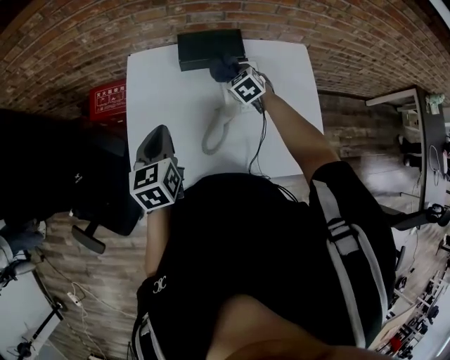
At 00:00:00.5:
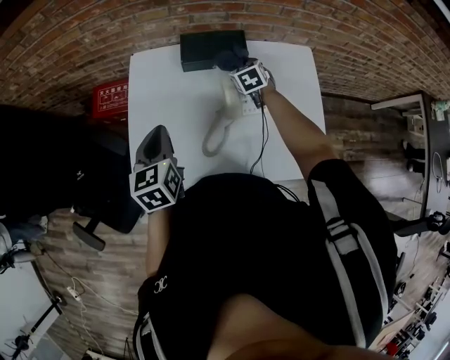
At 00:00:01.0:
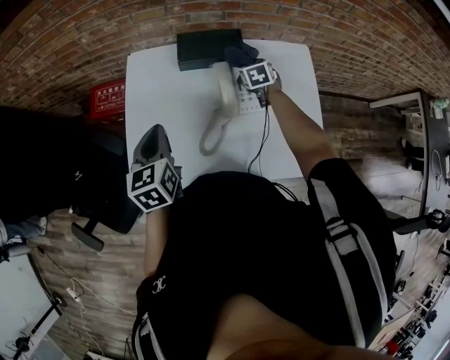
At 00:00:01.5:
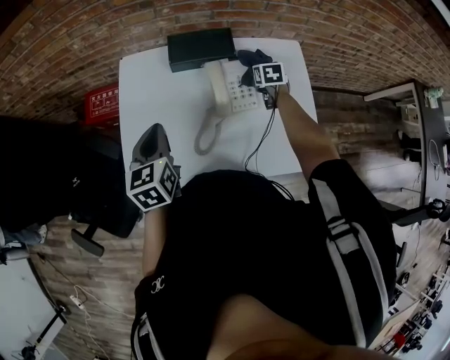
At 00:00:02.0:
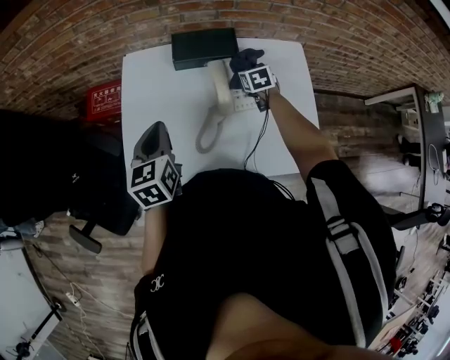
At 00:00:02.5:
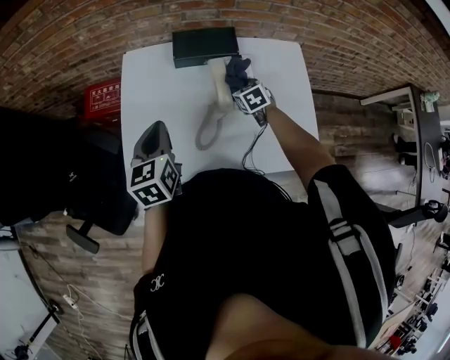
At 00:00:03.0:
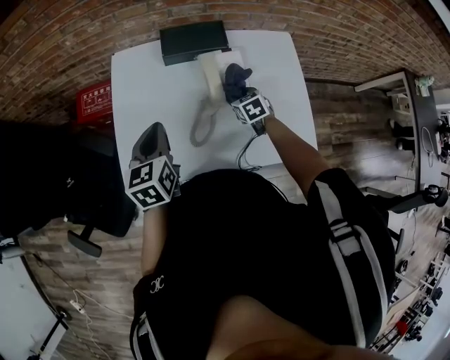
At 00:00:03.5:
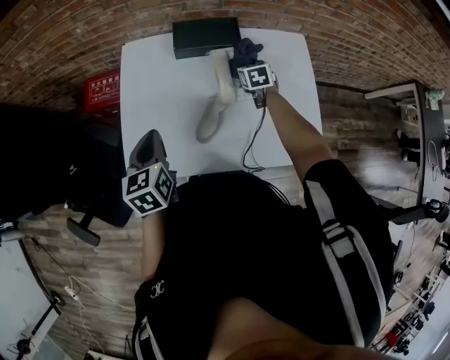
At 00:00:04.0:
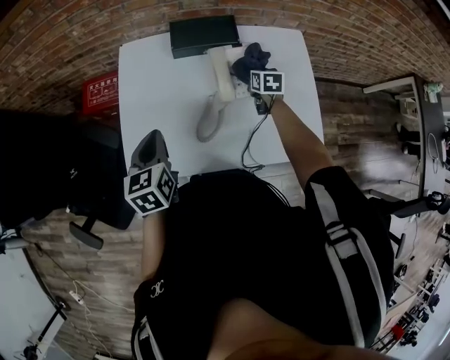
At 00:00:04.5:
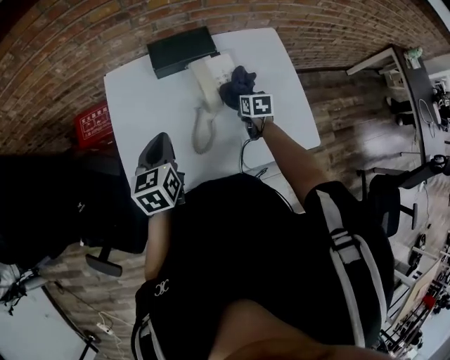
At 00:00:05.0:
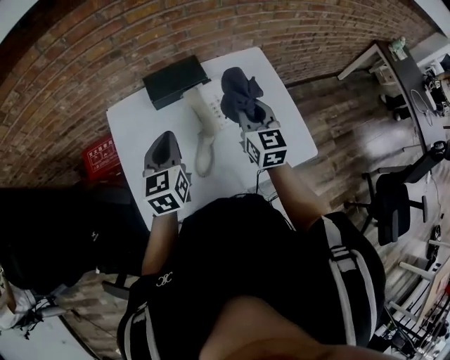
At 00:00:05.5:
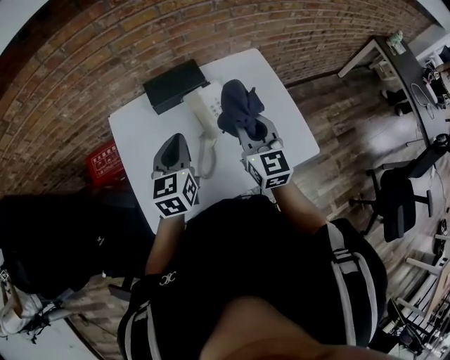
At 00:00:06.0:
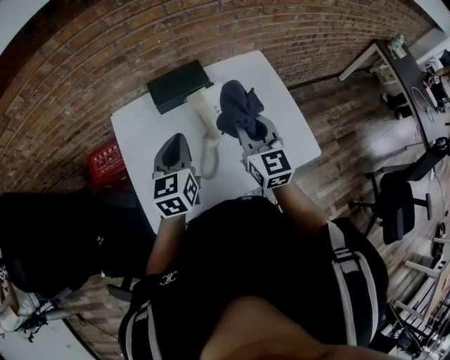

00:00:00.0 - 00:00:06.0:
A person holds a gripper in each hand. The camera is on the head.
00:00:00.0 - 00:00:02.0: The right gripper shifts roughly 10 cm to the right, and swivels approximately 20 degrees.
00:00:02.0 - 00:00:04.0: The left gripper moves approximately 5 cm.
00:00:04.0 - 00:00:06.0: The left gripper is displaced to the right, forward and upward by approximately 15 cm, and swivels about 20 degrees; the right gripper is displaced upward and backward by approximately 30 cm, and tilts its fingers approximately 40 degrees upward.

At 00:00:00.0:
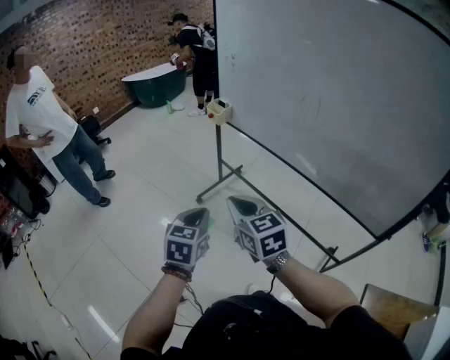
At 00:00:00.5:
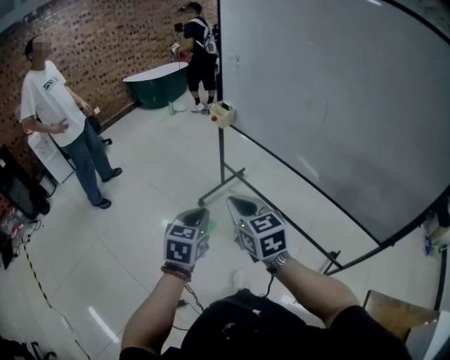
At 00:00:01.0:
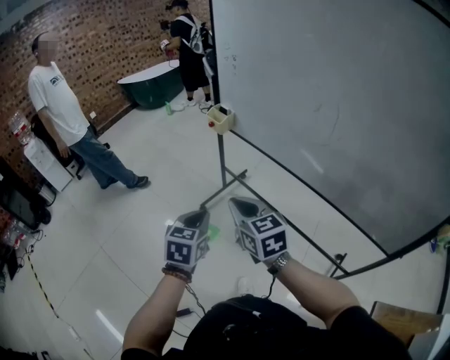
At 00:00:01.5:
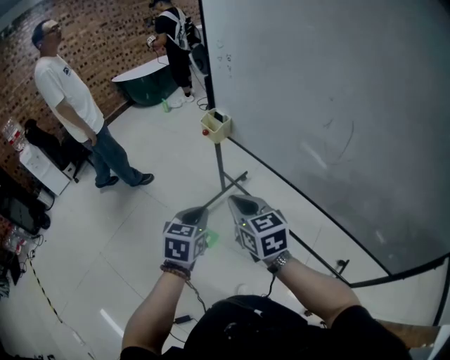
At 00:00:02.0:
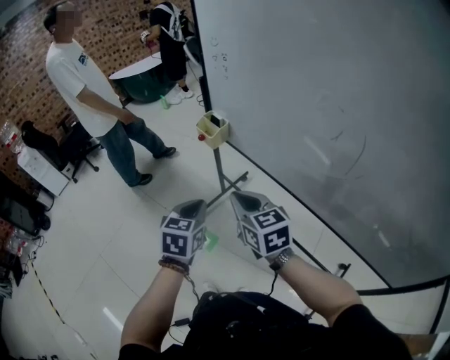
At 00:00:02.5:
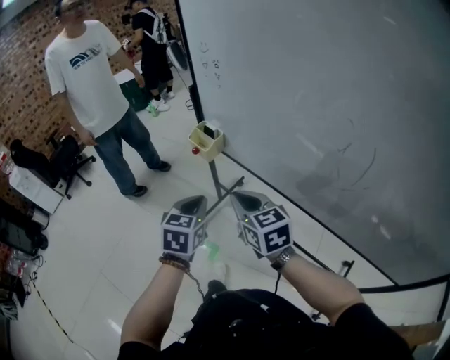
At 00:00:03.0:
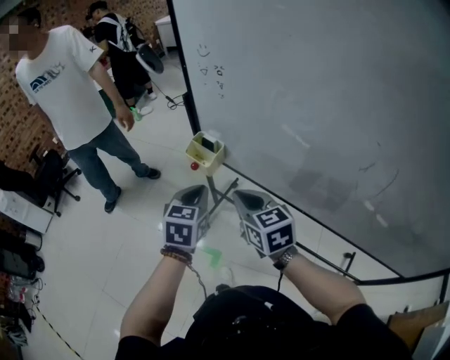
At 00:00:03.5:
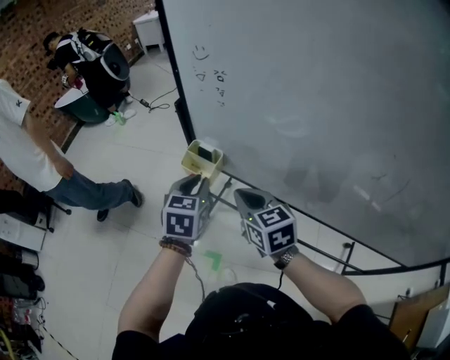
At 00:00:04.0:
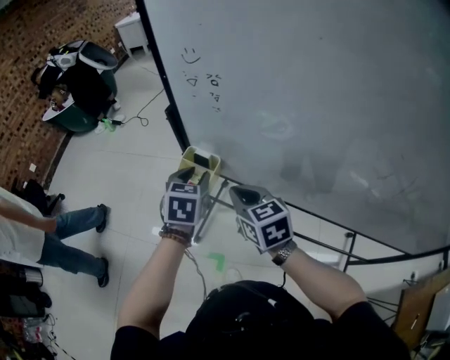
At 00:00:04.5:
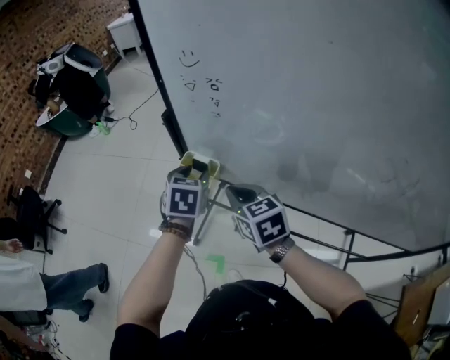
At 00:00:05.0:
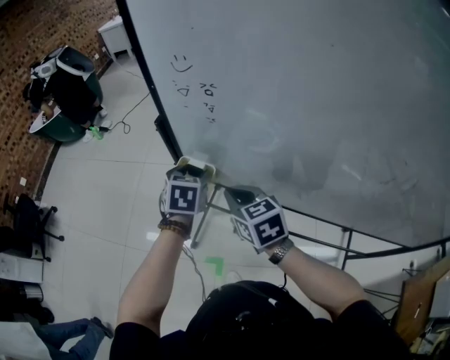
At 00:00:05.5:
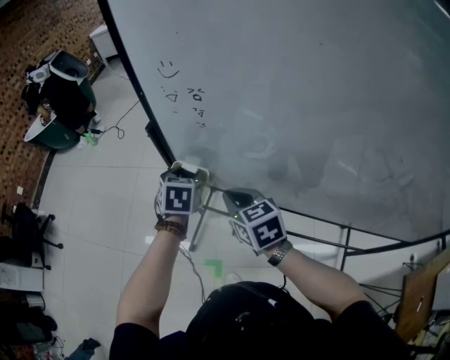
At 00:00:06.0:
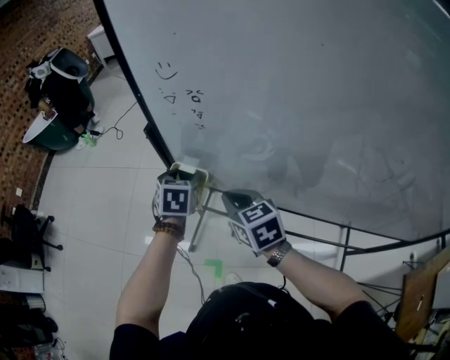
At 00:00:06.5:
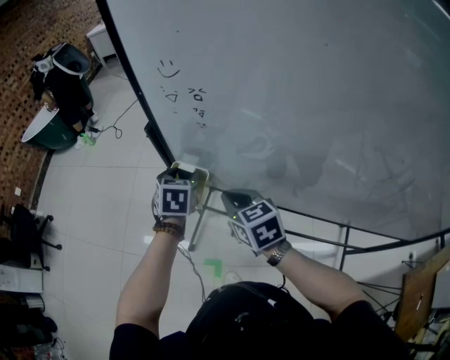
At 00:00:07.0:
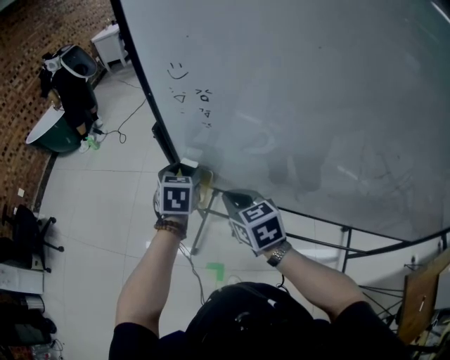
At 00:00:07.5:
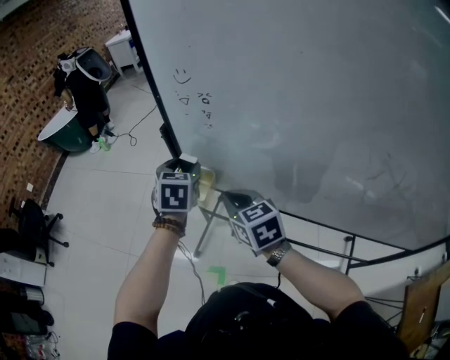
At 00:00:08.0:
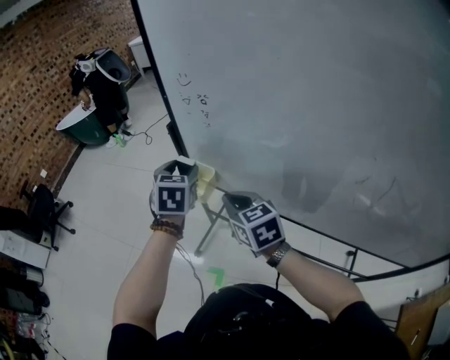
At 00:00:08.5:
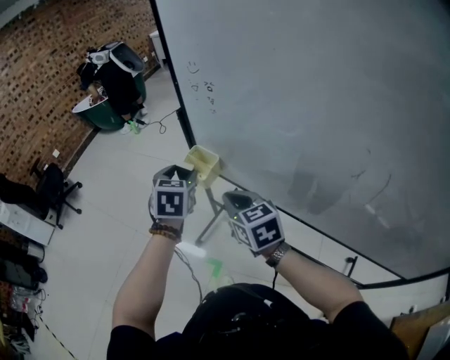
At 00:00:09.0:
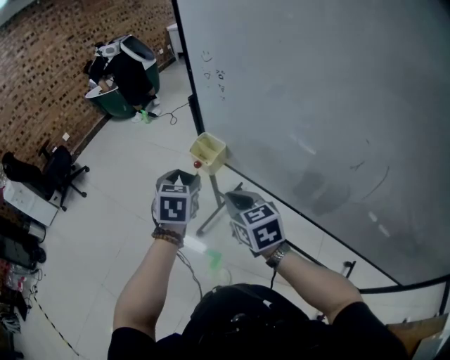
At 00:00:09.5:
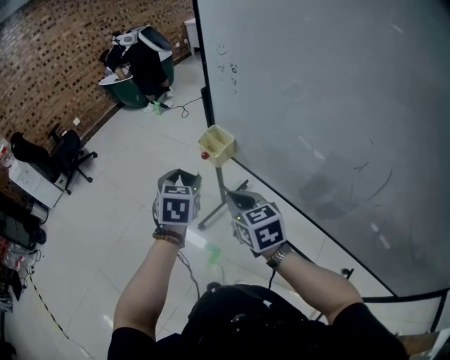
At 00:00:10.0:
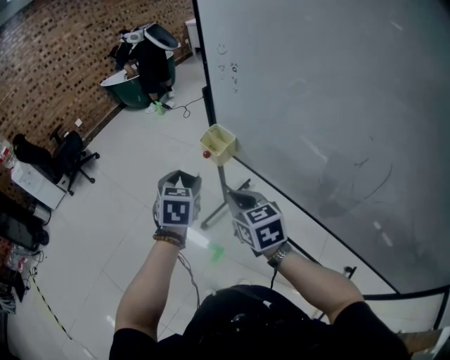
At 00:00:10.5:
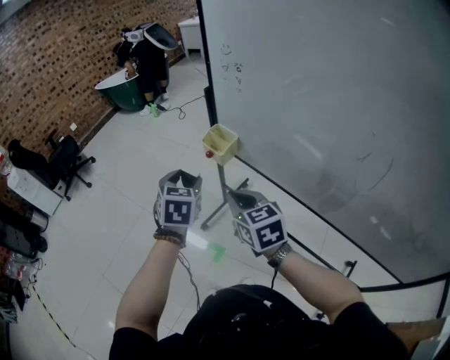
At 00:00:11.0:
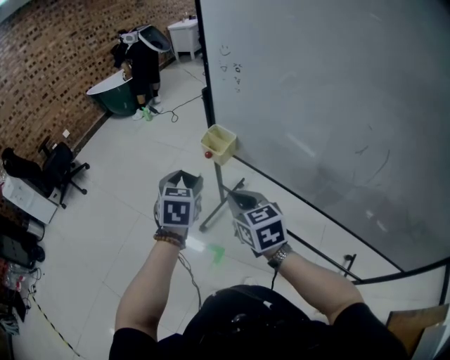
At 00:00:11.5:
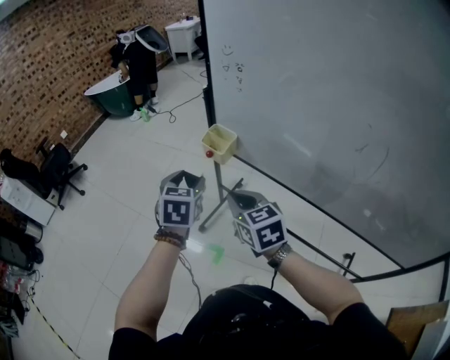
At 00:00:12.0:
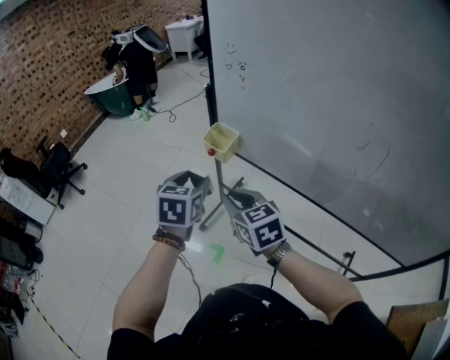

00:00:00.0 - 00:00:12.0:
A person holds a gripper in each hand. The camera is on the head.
00:00:00.0 - 00:00:02.0: Both grippers move forward, roughly 30 cm.
00:00:02.0 - 00:00:04.0: Both grippers move forward, some 30 cm. The left gripper opens up, while the right gripper changes its angle by about 20 degrees.
00:00:04.0 - 00:00:06.0: The left gripper heads forward, covering approximately 10 cm, and opens up.
00:00:06.0 - 00:00:08.0: The right gripper moves upward and backward, about 10 cm, while the left gripper moves upward and backward, about 15 cm.
00:00:08.0 - 00:00:10.0: The left gripper moves backward and to the left, about 20 cm. The right gripper travels backward by roughly 10 cm.
00:00:10.0 - 00:00:12.0: The right gripper heads to the left, covering approximately 5 cm.

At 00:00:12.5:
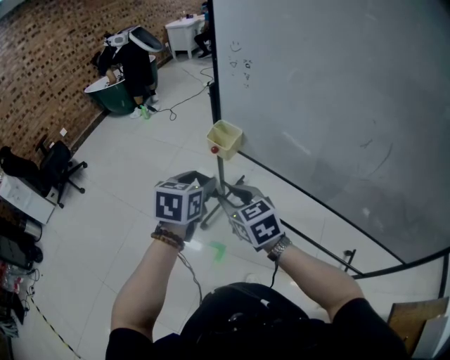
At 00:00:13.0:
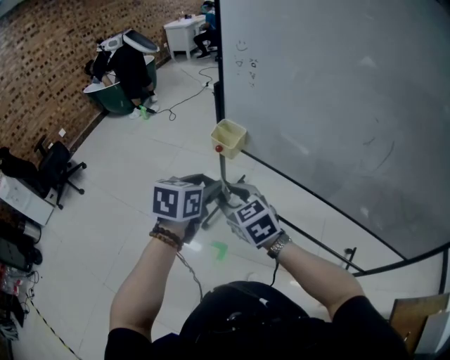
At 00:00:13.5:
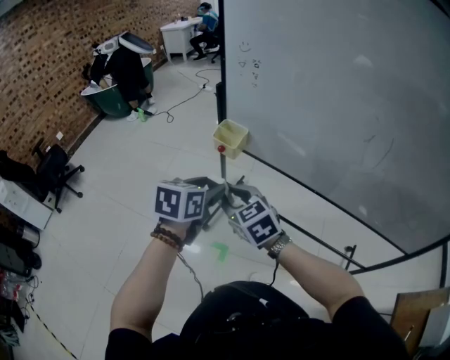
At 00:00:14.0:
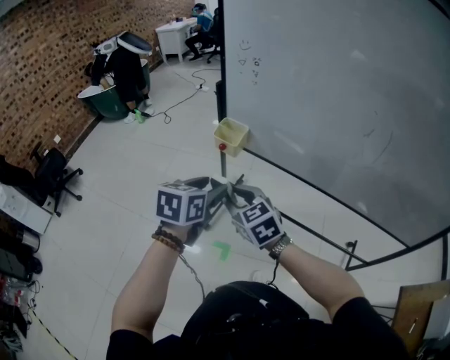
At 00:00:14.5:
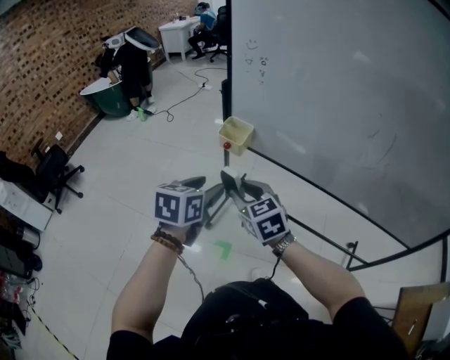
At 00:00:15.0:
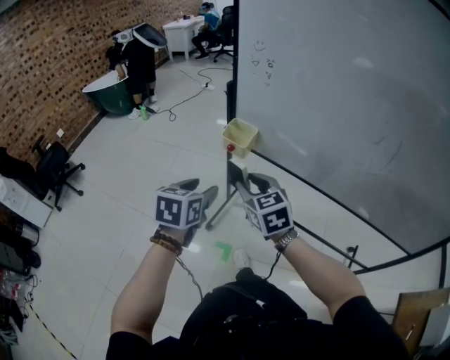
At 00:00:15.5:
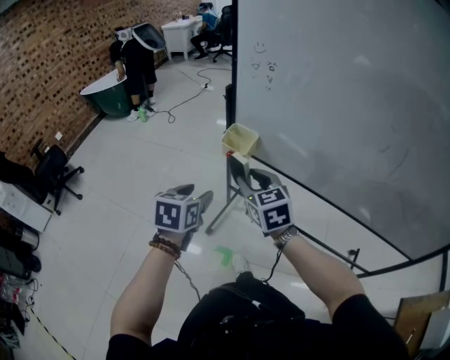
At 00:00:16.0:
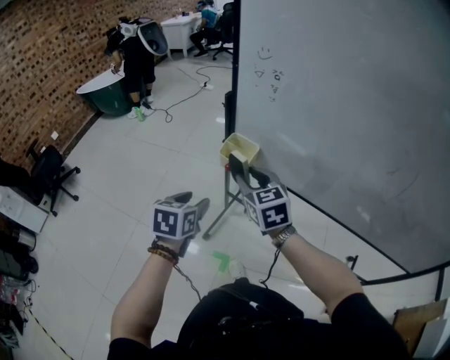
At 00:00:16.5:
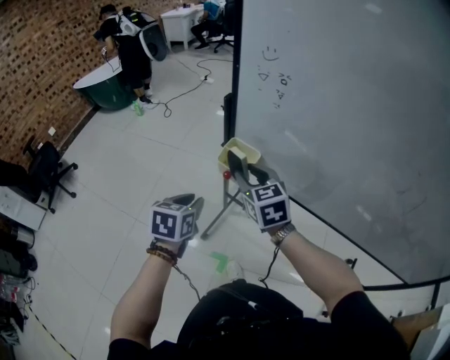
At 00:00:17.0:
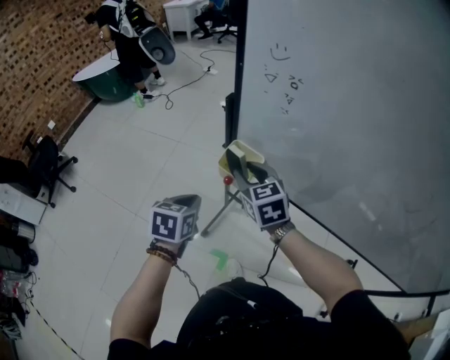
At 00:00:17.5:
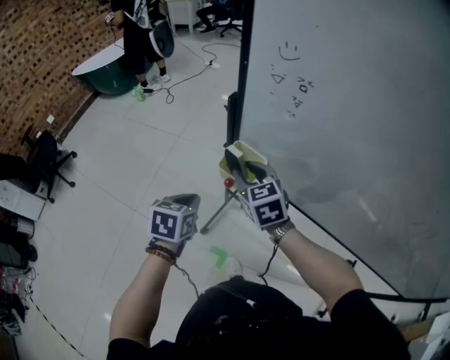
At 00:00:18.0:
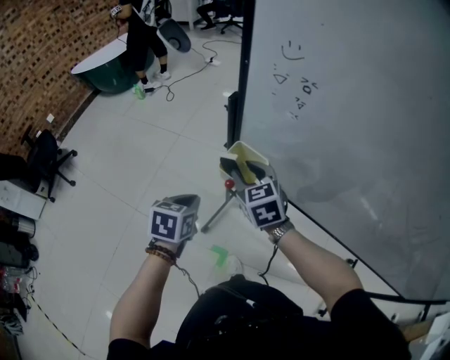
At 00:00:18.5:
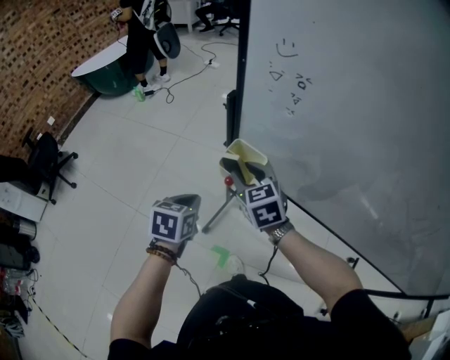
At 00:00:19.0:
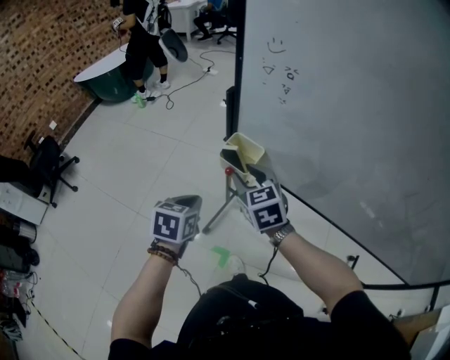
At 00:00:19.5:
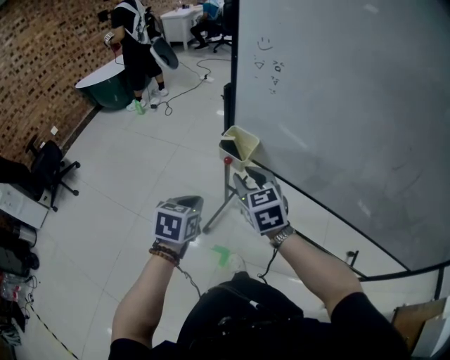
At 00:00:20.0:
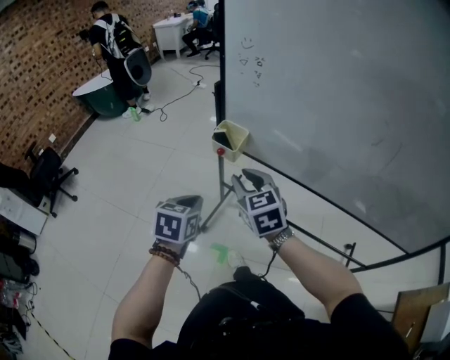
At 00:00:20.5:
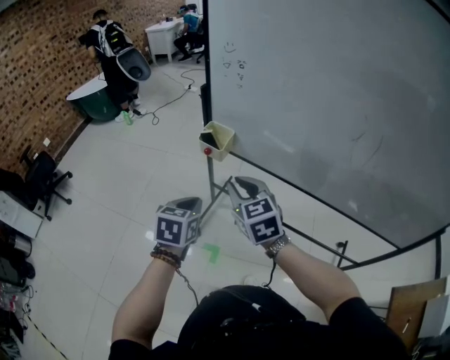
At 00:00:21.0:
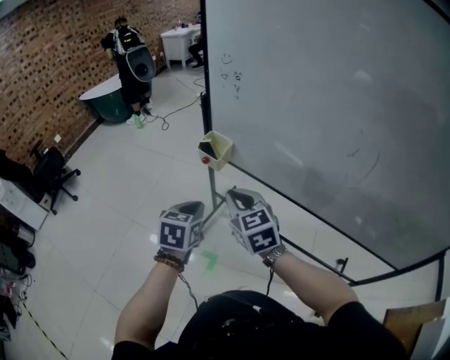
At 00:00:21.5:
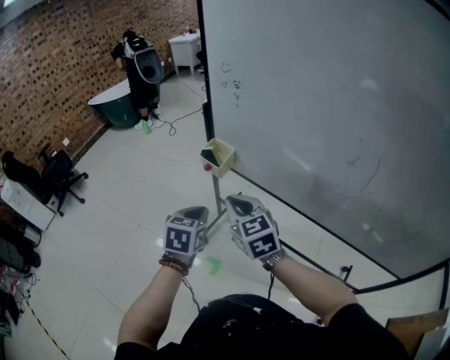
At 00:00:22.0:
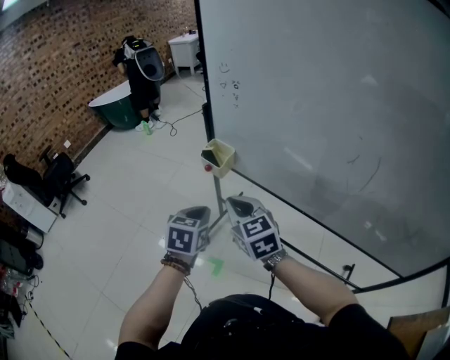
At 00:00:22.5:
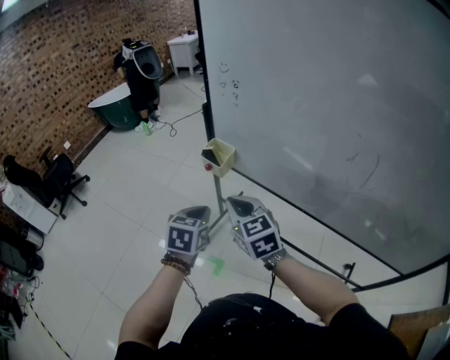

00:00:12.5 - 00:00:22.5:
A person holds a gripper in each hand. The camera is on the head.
00:00:12.5 - 00:00:14.5: The left gripper moves about 5 cm.
00:00:14.5 - 00:00:16.5: The right gripper heads forward, covering about 20 cm. The left gripper goes about 15 cm forward and downward, and closes its fingers.
00:00:16.5 - 00:00:18.5: The right gripper travels downward and forward by approximately 10 cm, while the left gripper moves approximately 5 cm, and closes its fingers.
00:00:18.5 - 00:00:20.5: The left gripper goes about 20 cm backward and upward. Meanwhile the right gripper goes some 25 cm backward.
00:00:20.5 - 00:00:22.5: The left gripper heads to the right, covering about 5 cm.
